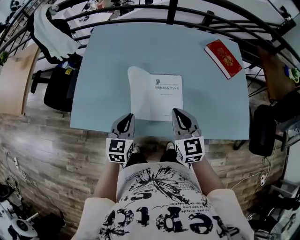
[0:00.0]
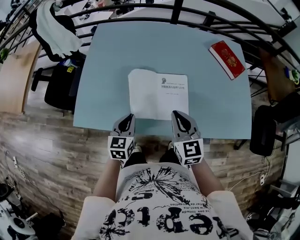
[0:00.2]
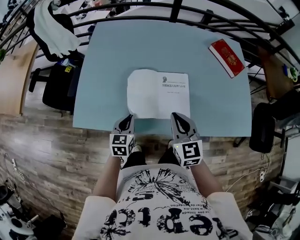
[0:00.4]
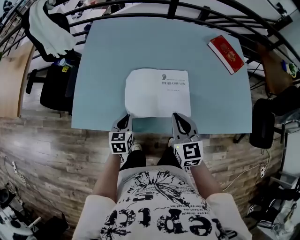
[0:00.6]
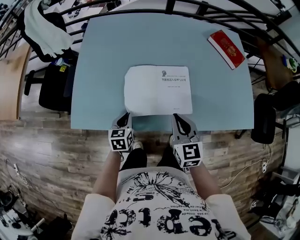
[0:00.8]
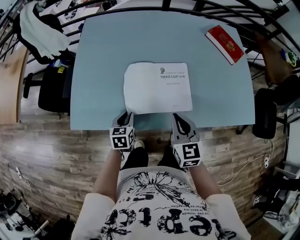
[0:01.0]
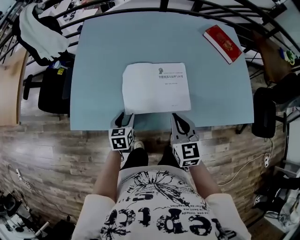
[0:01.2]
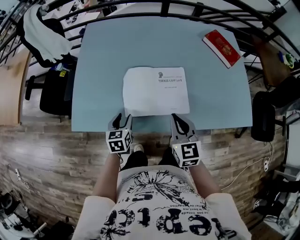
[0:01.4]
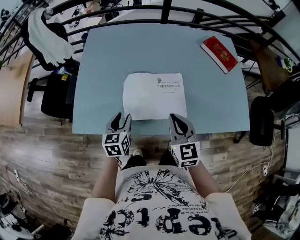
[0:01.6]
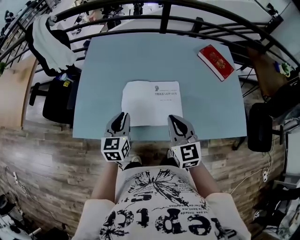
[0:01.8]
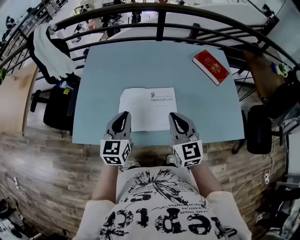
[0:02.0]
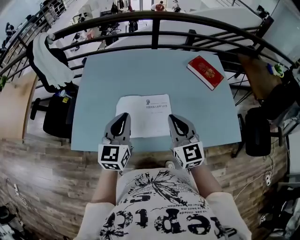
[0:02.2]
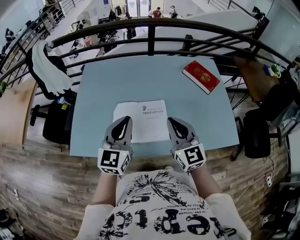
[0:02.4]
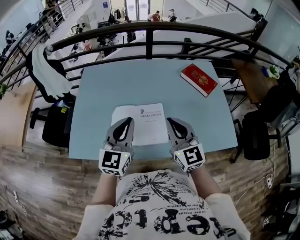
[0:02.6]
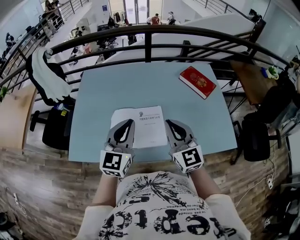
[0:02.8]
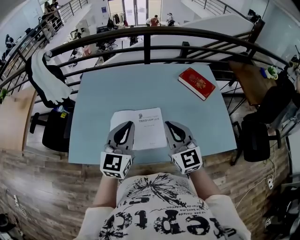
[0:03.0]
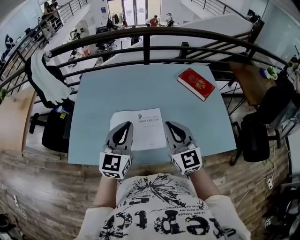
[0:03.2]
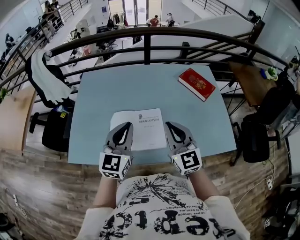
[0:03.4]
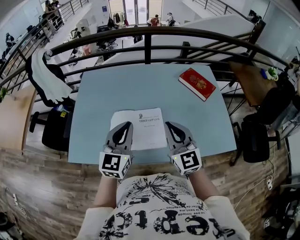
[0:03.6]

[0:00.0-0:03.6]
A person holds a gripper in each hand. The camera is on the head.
0:00.0 to 0:01.8: The left gripper moves about 15 cm downward and comes back, and opens, then closes again. Meanwhile the right gripper reaches some 5 cm downward, then returns.
0:01.8 to 0:03.6: The right gripper moves upward and to the right, approximately 15 cm. The left gripper heads upward and to the right, covering approximately 20 cm, and turns by about 20 degrees.

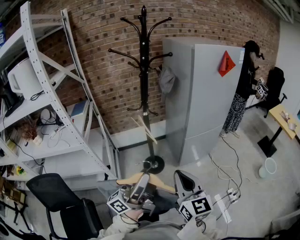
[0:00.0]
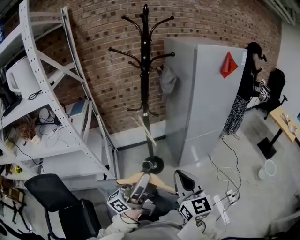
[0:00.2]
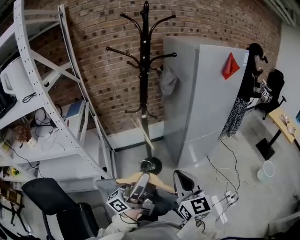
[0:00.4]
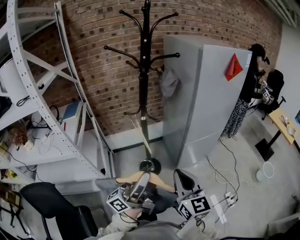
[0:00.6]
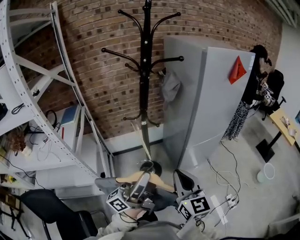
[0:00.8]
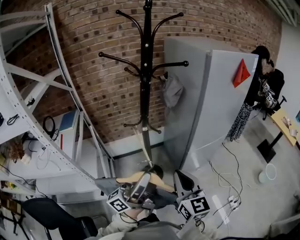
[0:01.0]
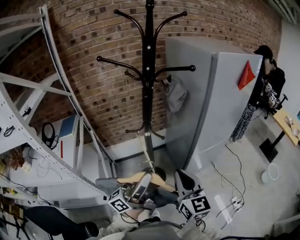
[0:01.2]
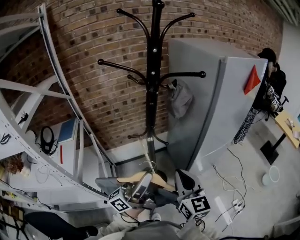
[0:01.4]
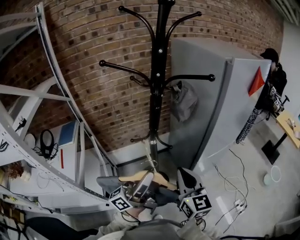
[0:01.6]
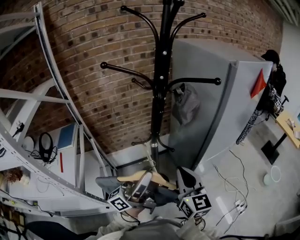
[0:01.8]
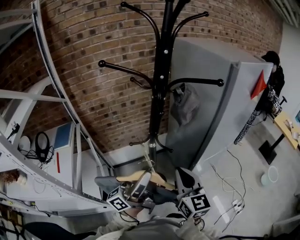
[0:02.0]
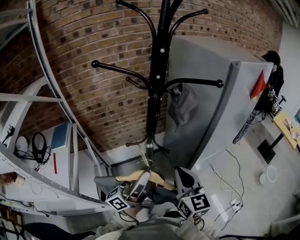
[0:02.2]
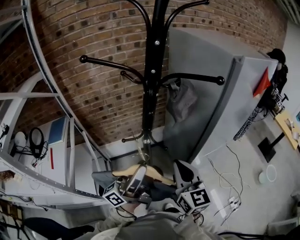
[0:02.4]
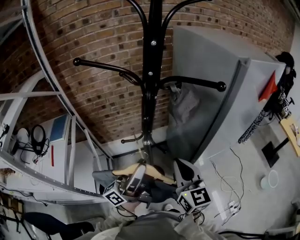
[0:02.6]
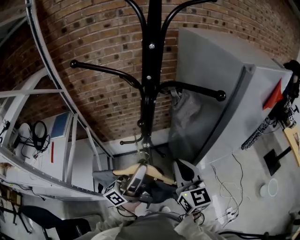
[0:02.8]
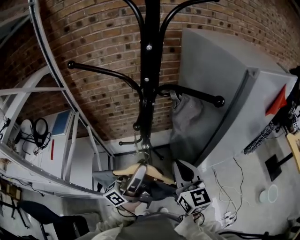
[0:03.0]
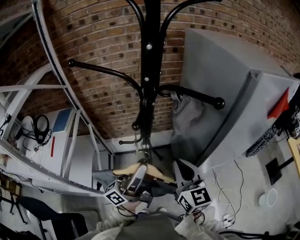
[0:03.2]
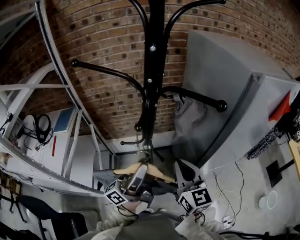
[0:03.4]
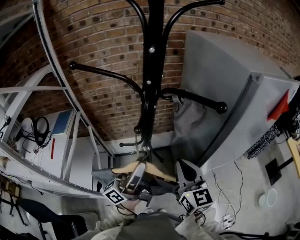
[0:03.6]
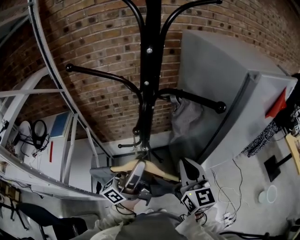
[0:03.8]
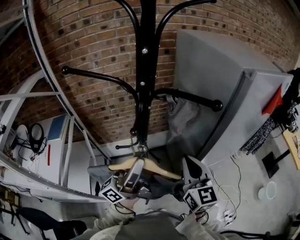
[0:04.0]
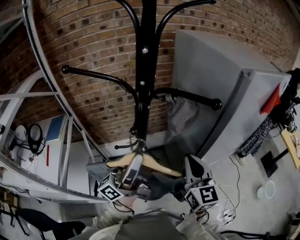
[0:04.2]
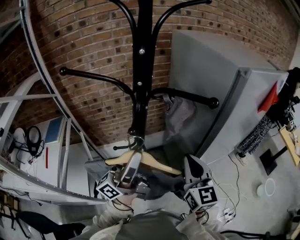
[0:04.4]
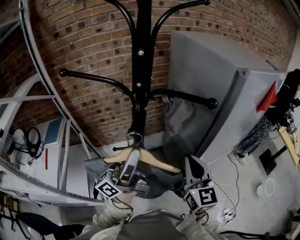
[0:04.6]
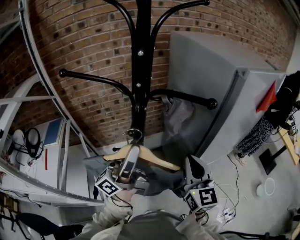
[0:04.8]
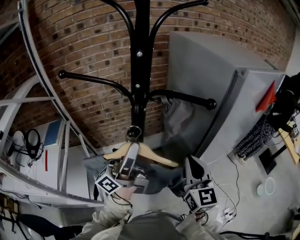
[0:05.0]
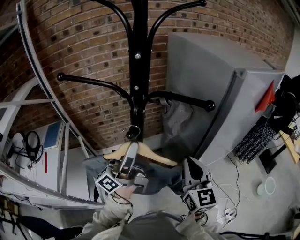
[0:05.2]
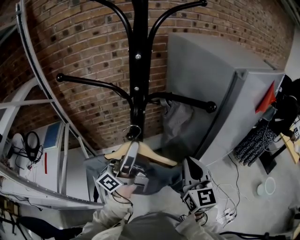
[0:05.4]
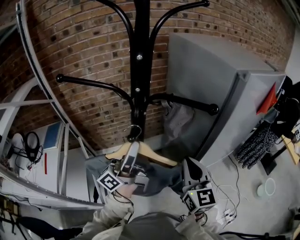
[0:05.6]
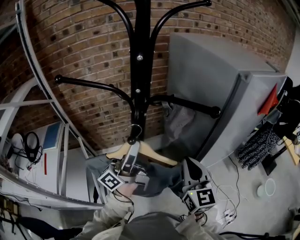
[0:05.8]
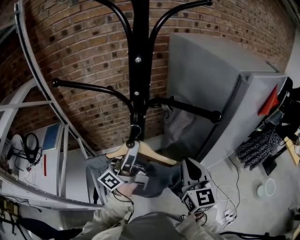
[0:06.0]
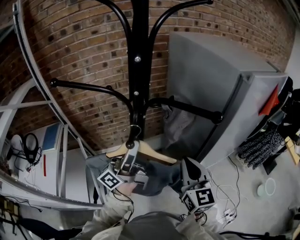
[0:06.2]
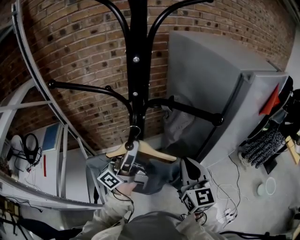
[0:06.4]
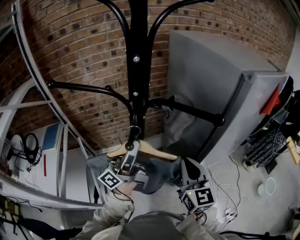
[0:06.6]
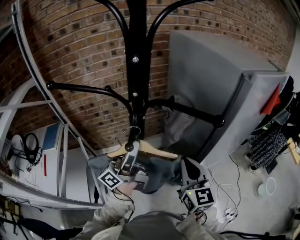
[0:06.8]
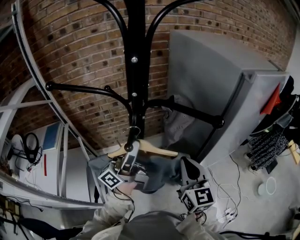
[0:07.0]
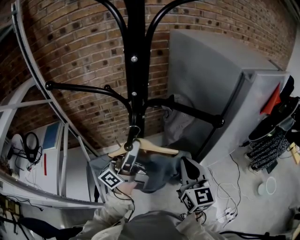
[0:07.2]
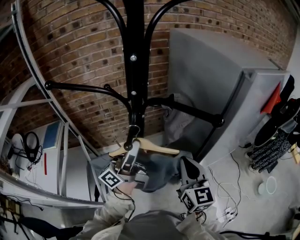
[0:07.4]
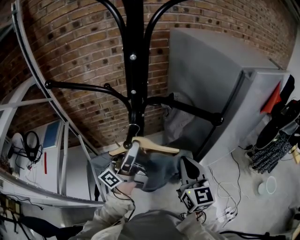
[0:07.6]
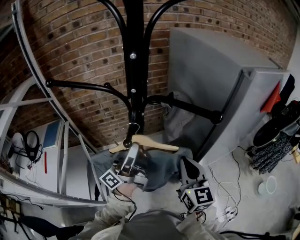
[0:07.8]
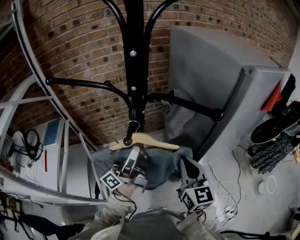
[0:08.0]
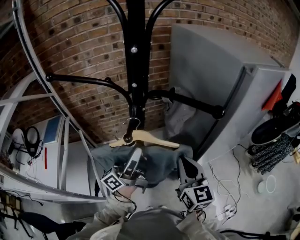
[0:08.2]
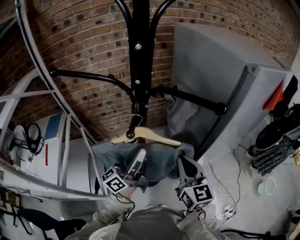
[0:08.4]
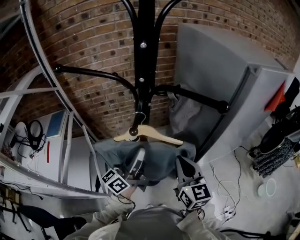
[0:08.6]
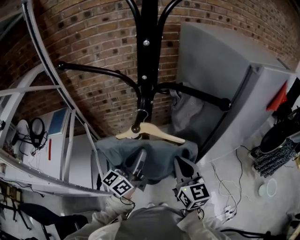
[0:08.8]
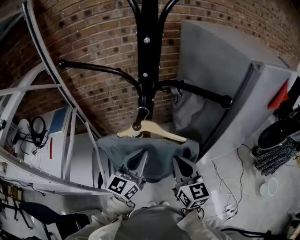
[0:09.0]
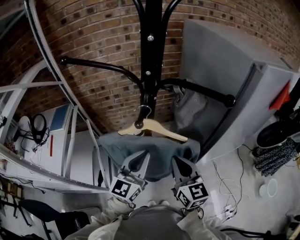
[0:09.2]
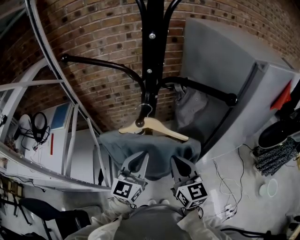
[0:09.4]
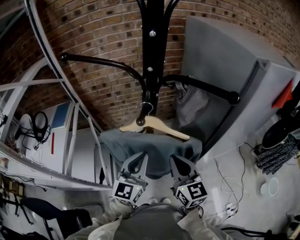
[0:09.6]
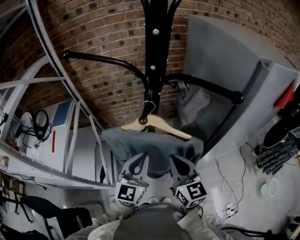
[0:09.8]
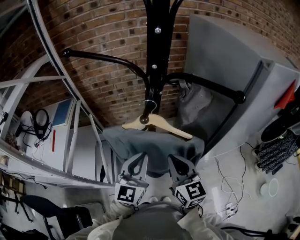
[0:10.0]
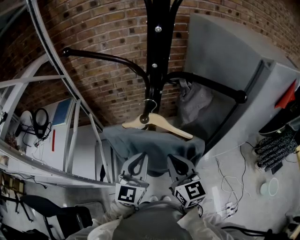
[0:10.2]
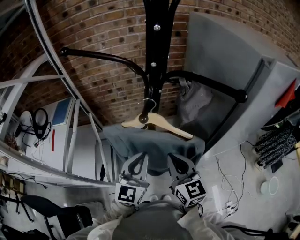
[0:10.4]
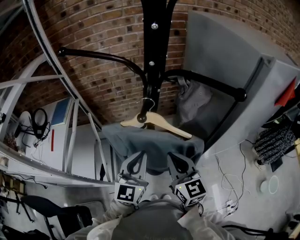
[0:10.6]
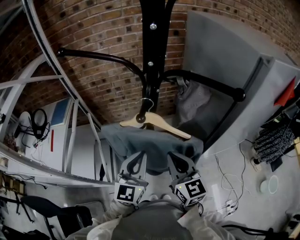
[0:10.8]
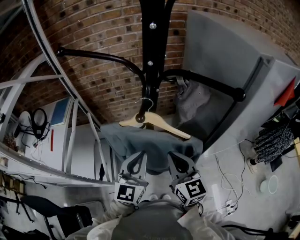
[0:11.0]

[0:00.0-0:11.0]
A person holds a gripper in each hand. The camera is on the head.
0:00.0 to 0:01.6: The two grippers go about 35 cm forward and to the left.
0:01.6 to 0:03.2: Both grippers travel together forward, roughly 15 cm.
0:03.2 to 0:04.8: The left gripper is displaced upward by some 5 cm. Meanwhile the right gripper heads to the right, covering about 5 cm.
0:04.8 to 0:06.2: The left gripper travels forward by some 5 cm.
0:06.2 to 0:07.8: The grippers move only a little.
0:07.8 to 0:09.4: The left gripper shifts about 10 cm downward and backward, twists approximately 60 degrees clockwise, seen from behind, and closes up, while the right gripper shifts roughly 5 cm to the left.
0:09.4 to 0:11.0: The grippers move only a little.

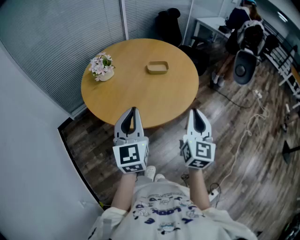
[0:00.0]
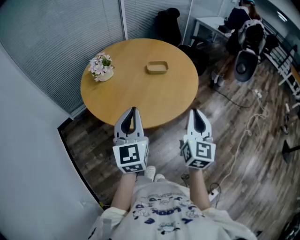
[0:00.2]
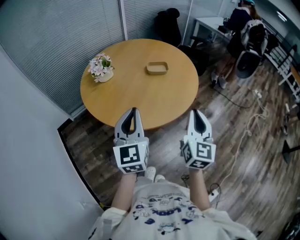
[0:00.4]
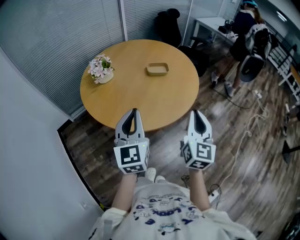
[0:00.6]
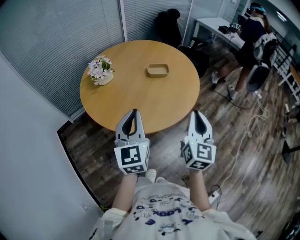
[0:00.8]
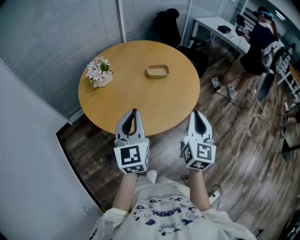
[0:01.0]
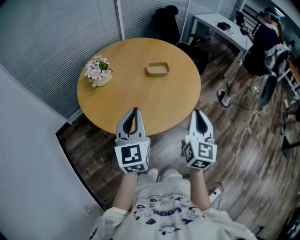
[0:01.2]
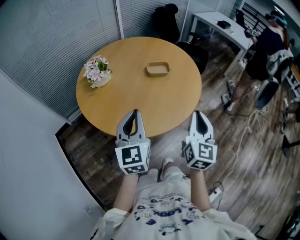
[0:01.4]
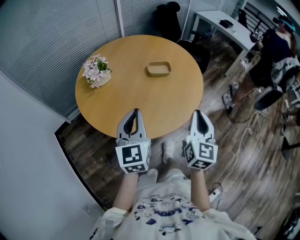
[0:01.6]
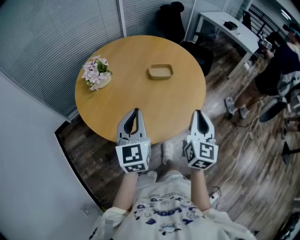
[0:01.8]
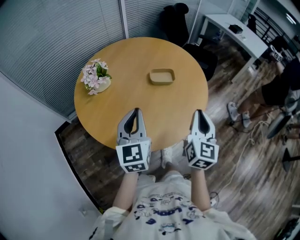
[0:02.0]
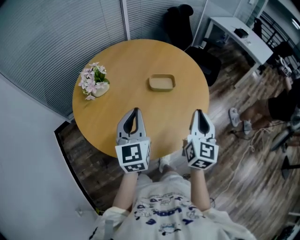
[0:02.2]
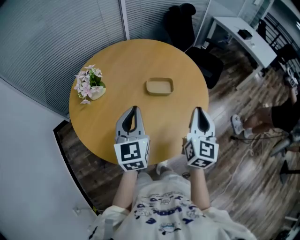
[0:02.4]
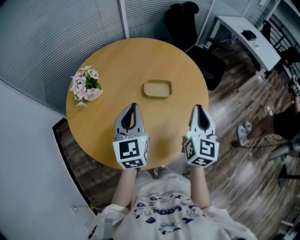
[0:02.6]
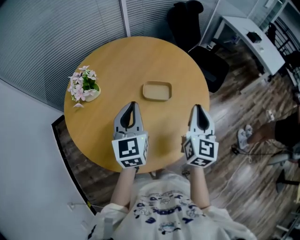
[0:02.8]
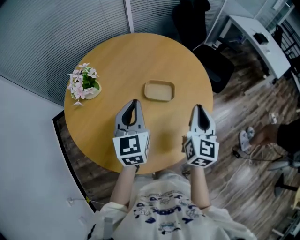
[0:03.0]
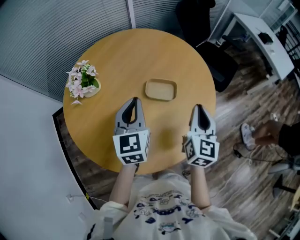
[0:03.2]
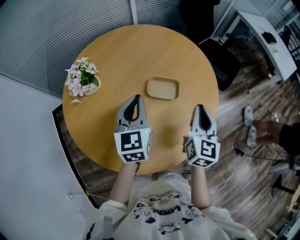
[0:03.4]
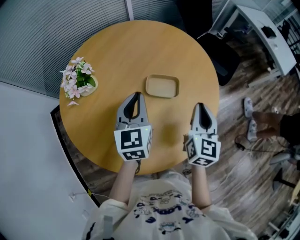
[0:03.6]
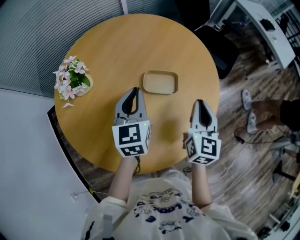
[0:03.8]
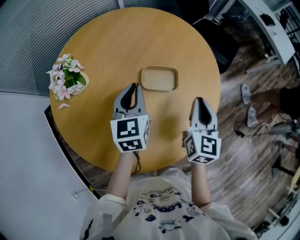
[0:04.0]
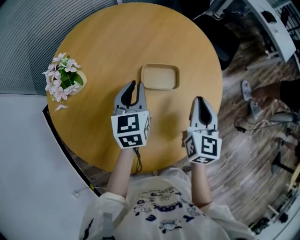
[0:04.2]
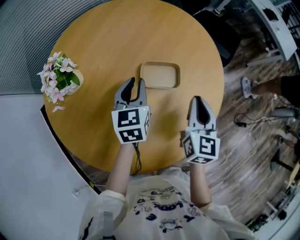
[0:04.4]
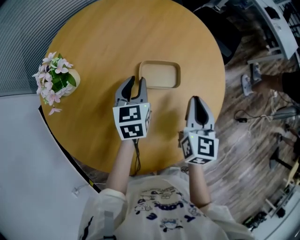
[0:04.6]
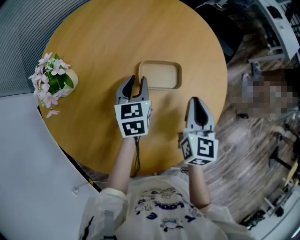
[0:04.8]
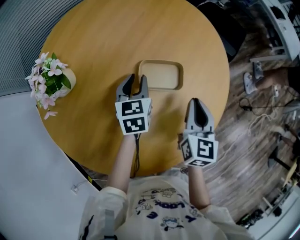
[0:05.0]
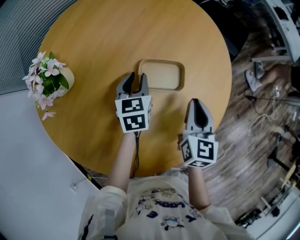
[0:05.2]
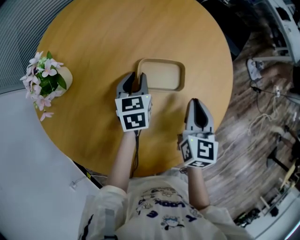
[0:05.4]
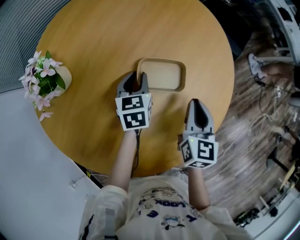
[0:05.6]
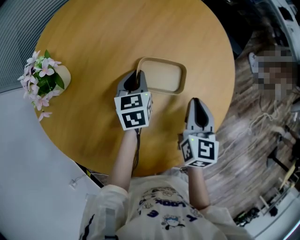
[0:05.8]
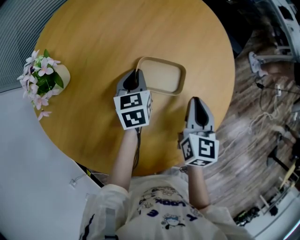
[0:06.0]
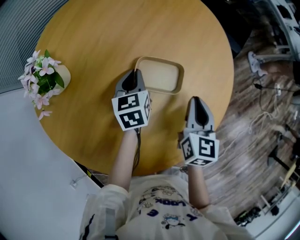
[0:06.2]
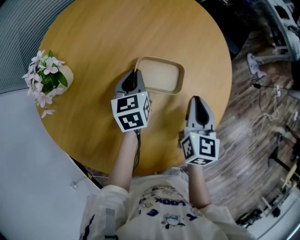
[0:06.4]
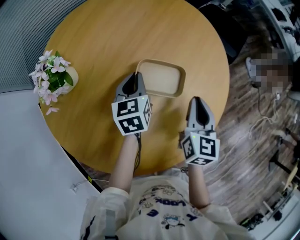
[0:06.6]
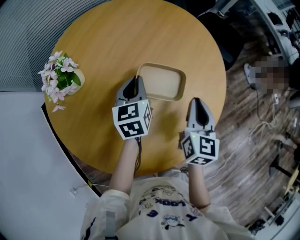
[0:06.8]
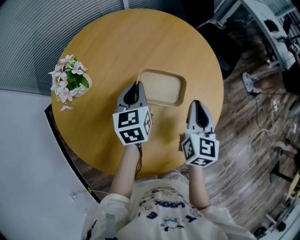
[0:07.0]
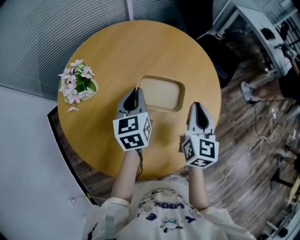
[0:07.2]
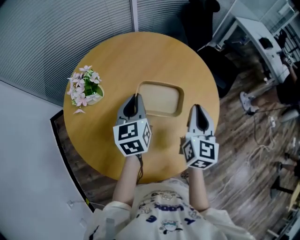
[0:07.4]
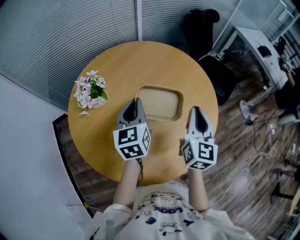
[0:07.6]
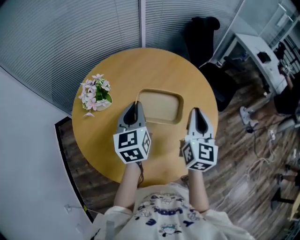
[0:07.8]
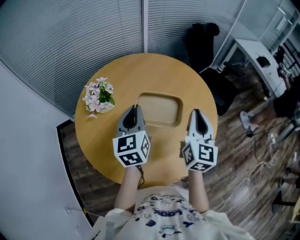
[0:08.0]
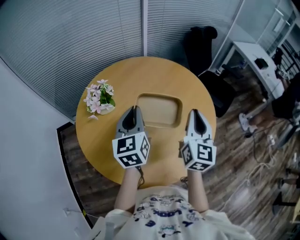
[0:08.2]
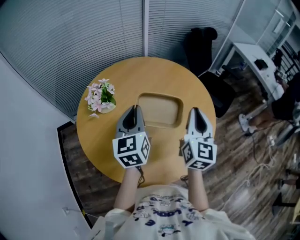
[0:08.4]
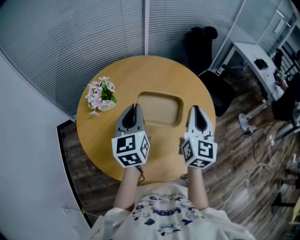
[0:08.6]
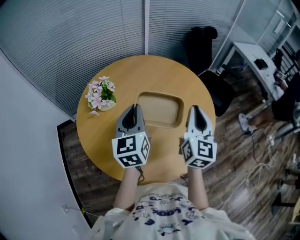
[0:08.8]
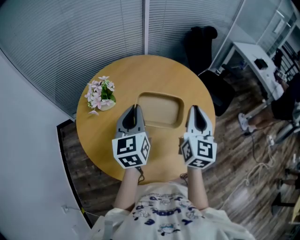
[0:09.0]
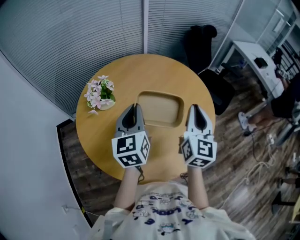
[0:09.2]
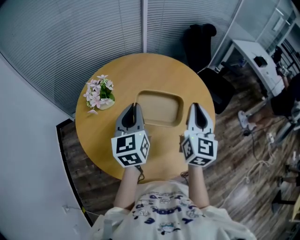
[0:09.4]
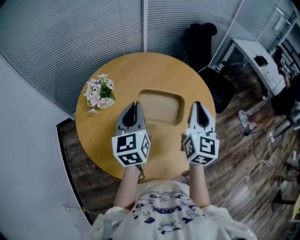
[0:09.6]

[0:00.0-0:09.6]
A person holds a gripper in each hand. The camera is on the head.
0:00.0 to 0:01.6: Both grippers move forward, some 10 cm.
0:01.6 to 0:03.2: Both grippers travel together forward, some 30 cm.
0:03.2 to 0:04.8: The left gripper shifts some 25 cm downward and forward, turns by about 20 degrees, and opens up; the right gripper moves downward, some 10 cm.
0:06.4 to 0:08.0: The left gripper travels upward and backward by some 30 cm, and rotates some 30 degrees. The right gripper travels upward by approximately 25 cm, and rotates some 30 degrees.
0:08.0 to 0:09.6: There are only small adjustments of the grippers.
